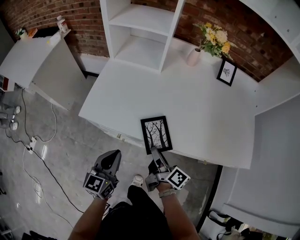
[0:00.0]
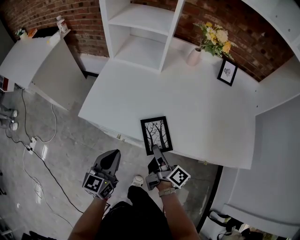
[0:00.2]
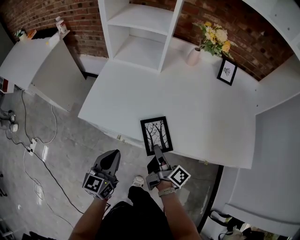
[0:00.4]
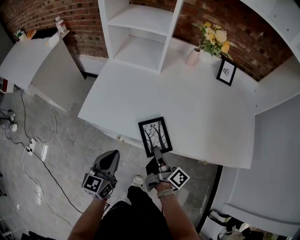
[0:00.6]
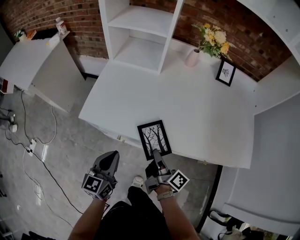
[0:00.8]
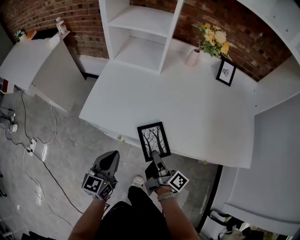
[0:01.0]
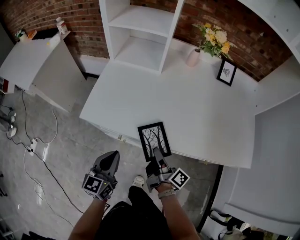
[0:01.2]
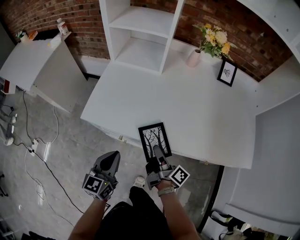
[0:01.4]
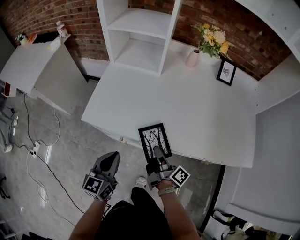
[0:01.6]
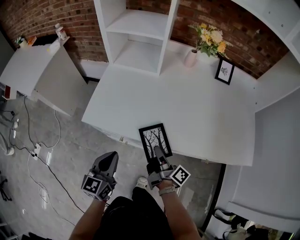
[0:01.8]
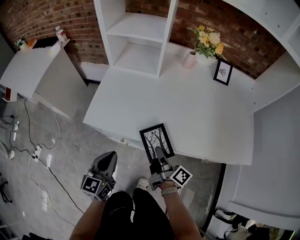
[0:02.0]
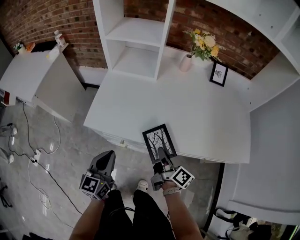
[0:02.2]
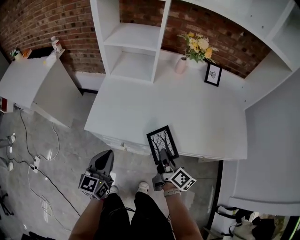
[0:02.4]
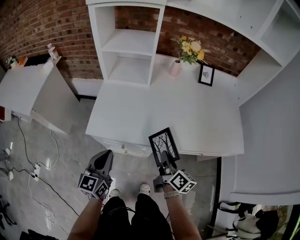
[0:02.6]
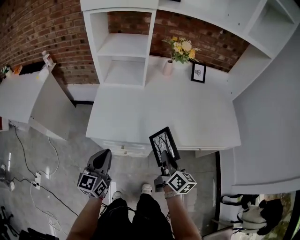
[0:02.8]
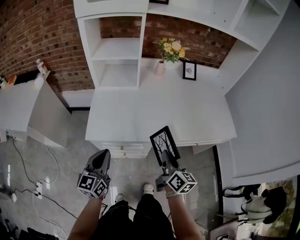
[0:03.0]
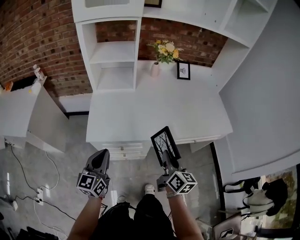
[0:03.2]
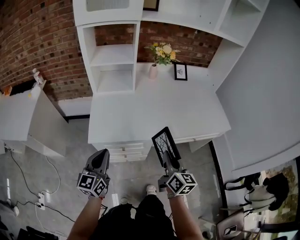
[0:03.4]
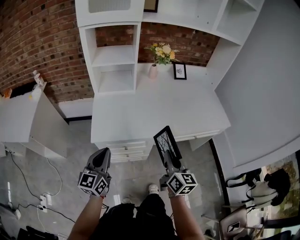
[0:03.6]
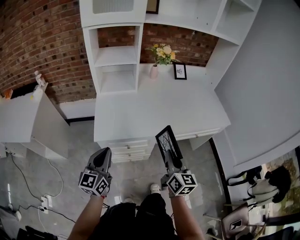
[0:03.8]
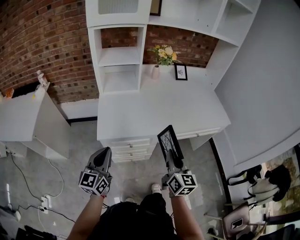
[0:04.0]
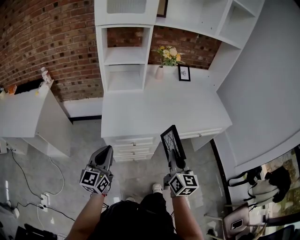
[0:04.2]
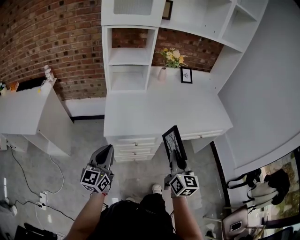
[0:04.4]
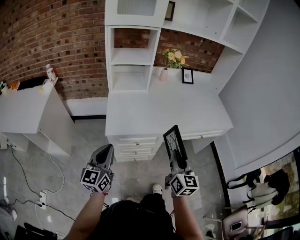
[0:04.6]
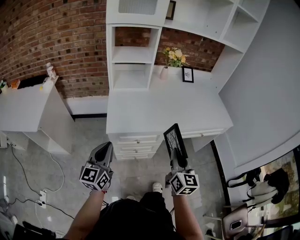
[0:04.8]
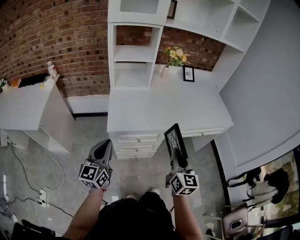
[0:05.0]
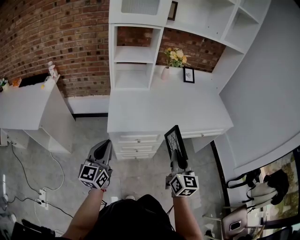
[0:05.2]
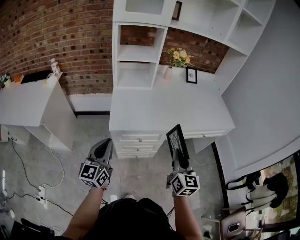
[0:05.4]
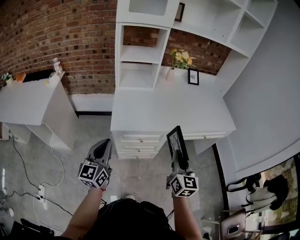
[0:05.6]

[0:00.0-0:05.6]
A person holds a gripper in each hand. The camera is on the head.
0.0 to 1.4 s: The right gripper closes up.
1.4 to 2.8 s: The right gripper moves upward and backward, approximately 10 cm, rolls counterclockwise, seen from behind, by roughly 40 degrees, and closes; the left gripper is displaced upward and to the left by approximately 10 cm.
2.8 to 4.2 s: The right gripper is displaced backward and upward by some 15 cm, and changes its angle by some 30 degrees; the left gripper shifts roughly 10 cm to the left, backward and upward.
4.2 to 5.6 s: The left gripper shifts by roughly 5 cm.

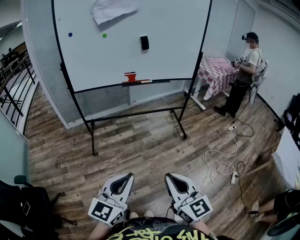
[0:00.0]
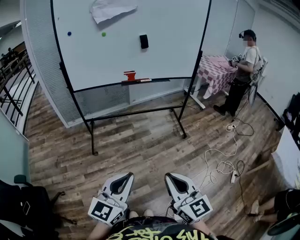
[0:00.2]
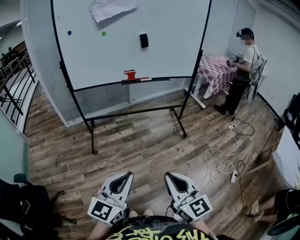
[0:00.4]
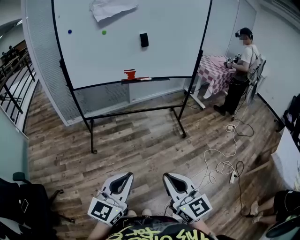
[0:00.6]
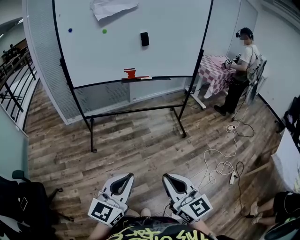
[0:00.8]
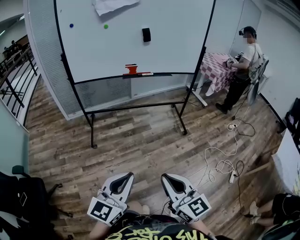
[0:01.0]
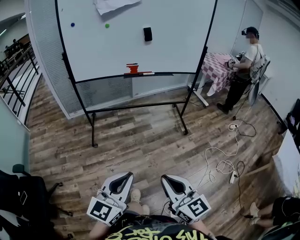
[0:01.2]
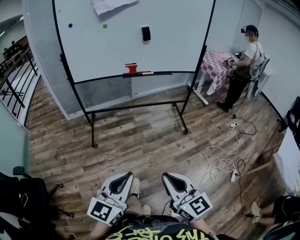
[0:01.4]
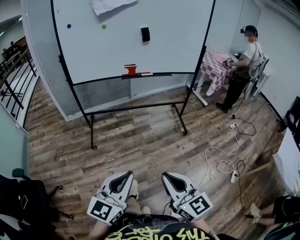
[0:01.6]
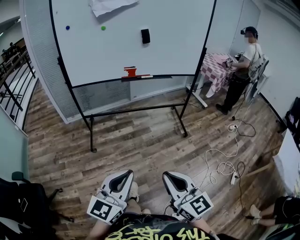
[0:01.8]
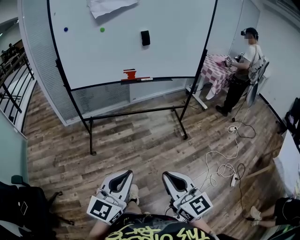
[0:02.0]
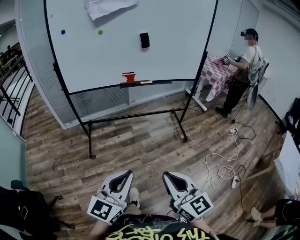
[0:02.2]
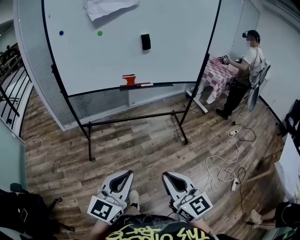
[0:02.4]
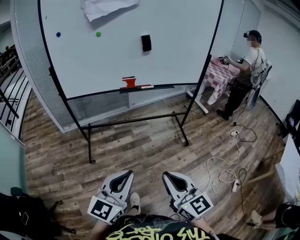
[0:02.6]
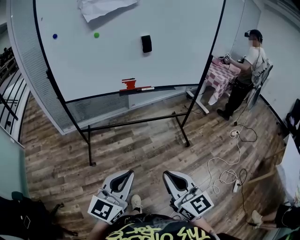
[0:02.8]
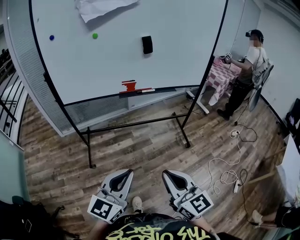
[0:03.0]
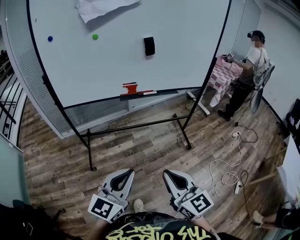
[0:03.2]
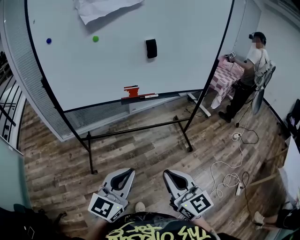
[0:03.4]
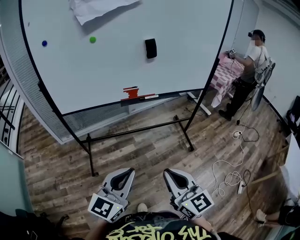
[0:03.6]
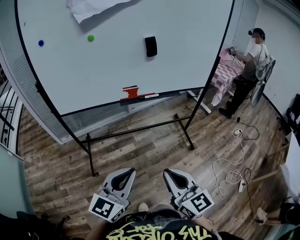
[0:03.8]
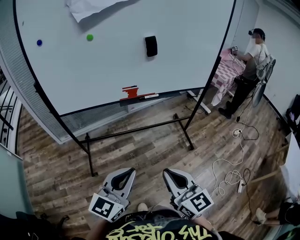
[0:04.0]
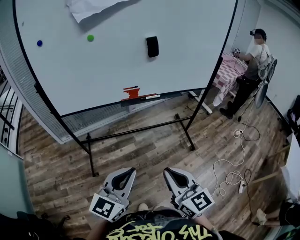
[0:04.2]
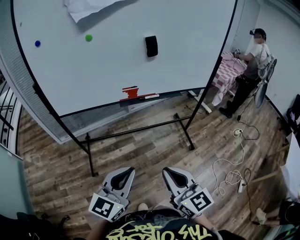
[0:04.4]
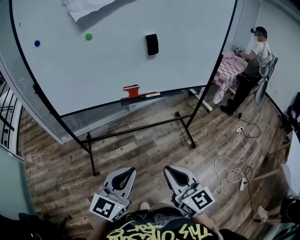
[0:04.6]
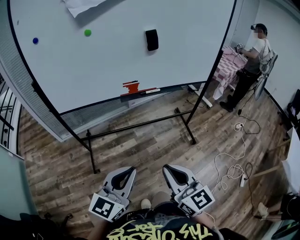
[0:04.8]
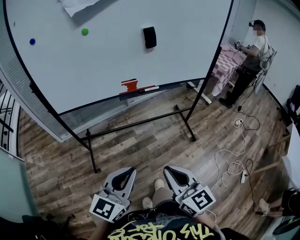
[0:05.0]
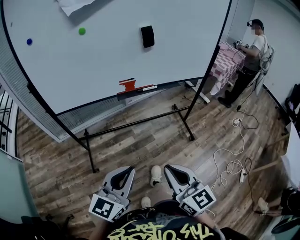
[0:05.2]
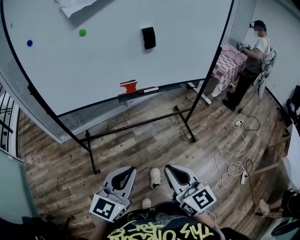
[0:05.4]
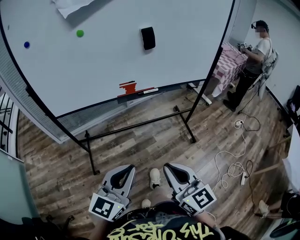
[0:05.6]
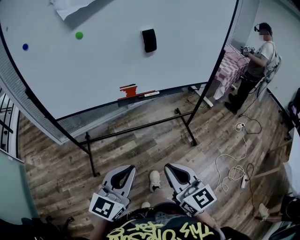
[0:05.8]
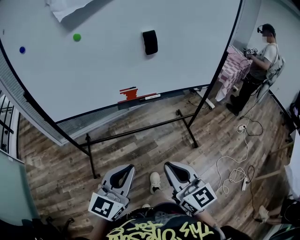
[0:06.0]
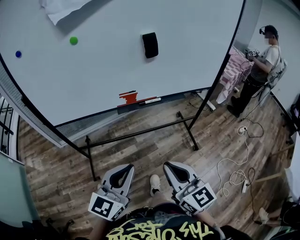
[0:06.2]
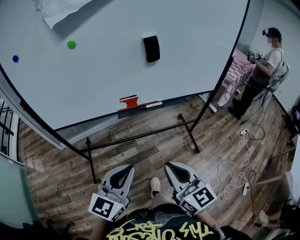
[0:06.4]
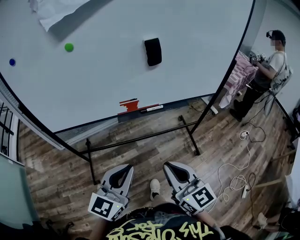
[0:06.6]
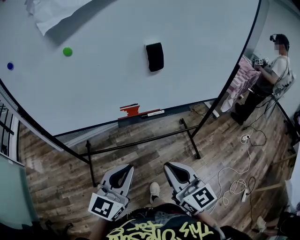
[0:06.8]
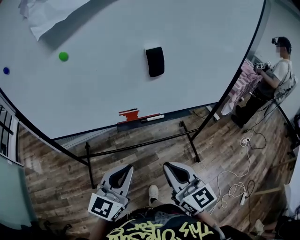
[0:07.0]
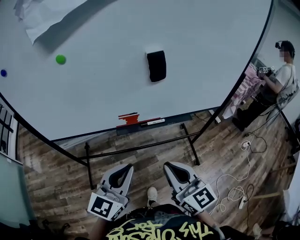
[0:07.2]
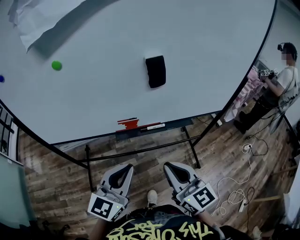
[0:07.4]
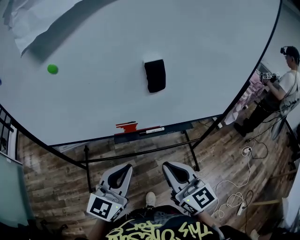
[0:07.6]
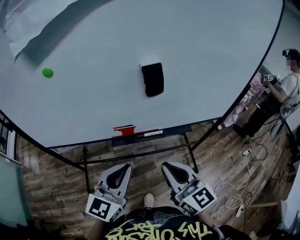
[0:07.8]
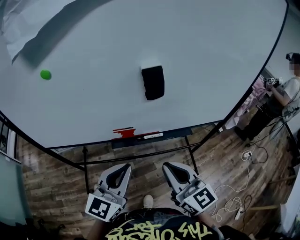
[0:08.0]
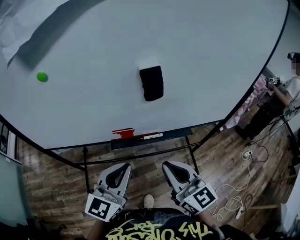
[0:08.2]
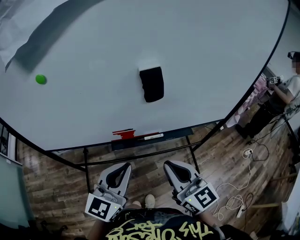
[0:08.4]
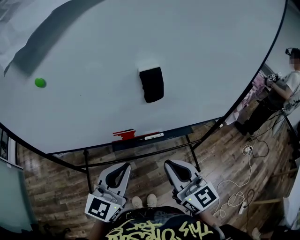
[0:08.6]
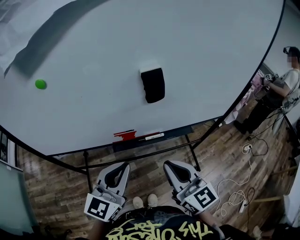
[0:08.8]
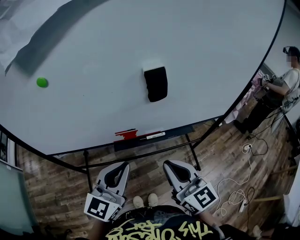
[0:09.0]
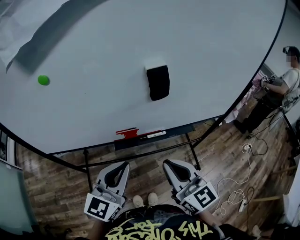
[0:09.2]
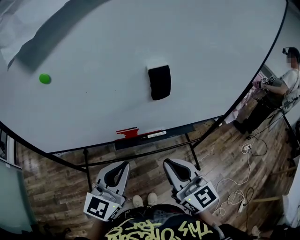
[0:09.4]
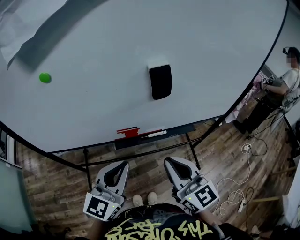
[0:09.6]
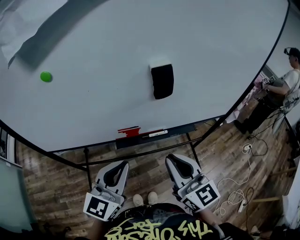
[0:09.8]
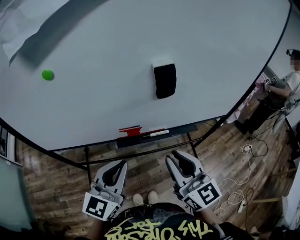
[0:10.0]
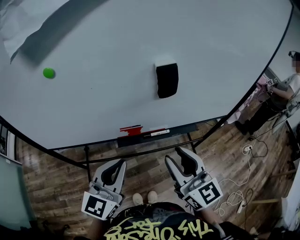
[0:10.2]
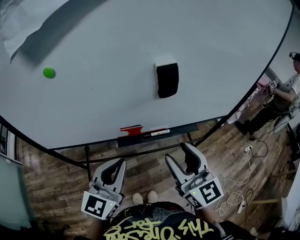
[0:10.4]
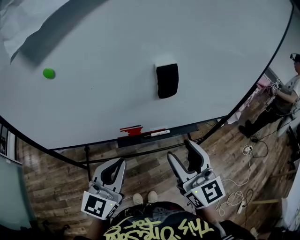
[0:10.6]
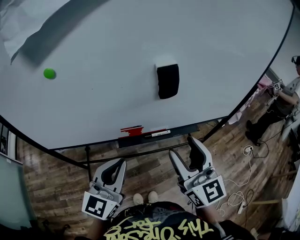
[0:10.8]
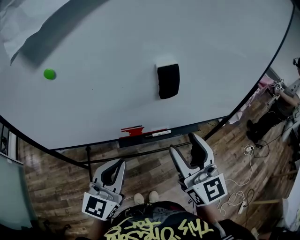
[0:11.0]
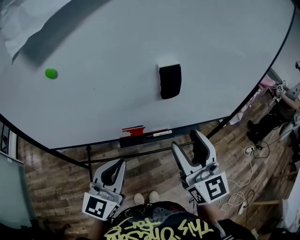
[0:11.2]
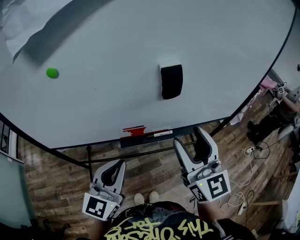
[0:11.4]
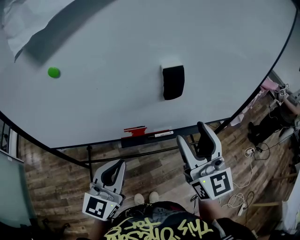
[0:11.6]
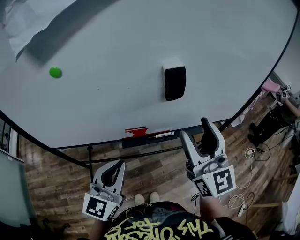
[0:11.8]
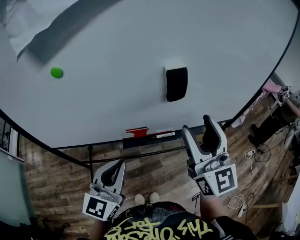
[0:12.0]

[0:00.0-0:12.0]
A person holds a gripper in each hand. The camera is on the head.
0.0 to 1.6 s: There are only small adjustments of the grippers.
1.6 to 3.0 s: The grippers both shift forward by roughly 20 cm.
3.0 to 4.4 s: The two grippers go some 10 cm forward.
4.4 to 6.0 s: The two grippers go approximately 5 cm forward.
6.0 to 7.6 s: The grippers both shift forward by roughly 20 cm.
7.6 to 9.0 s: The grippers stay close to where they were, moving slightly.
9.0 to 10.4 s: The right gripper opens its fingers.
10.4 to 12.0 s: The right gripper moves upward, roughly 10 cm.

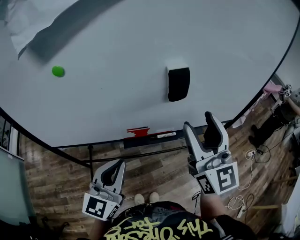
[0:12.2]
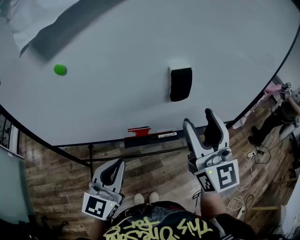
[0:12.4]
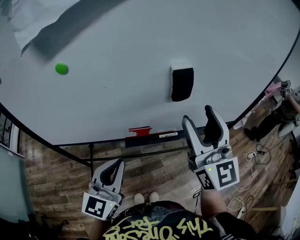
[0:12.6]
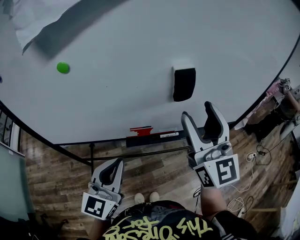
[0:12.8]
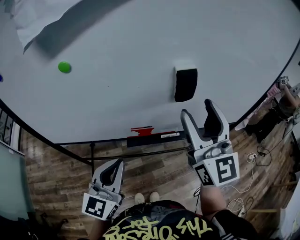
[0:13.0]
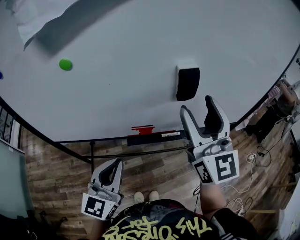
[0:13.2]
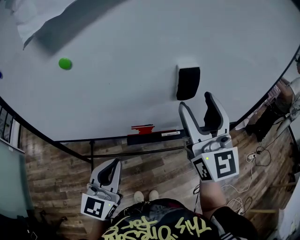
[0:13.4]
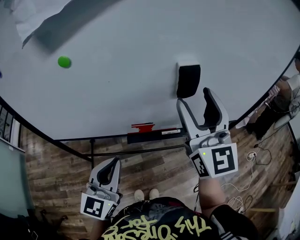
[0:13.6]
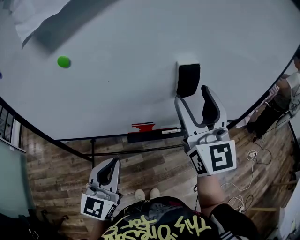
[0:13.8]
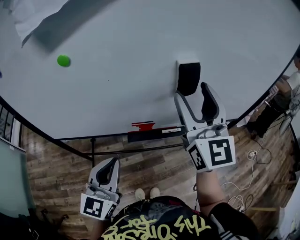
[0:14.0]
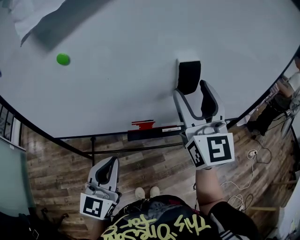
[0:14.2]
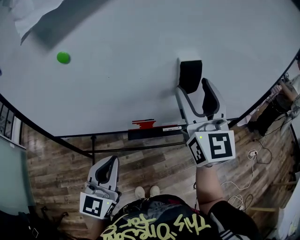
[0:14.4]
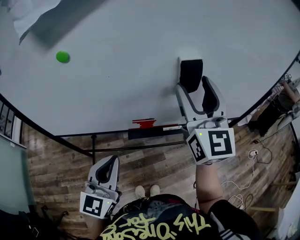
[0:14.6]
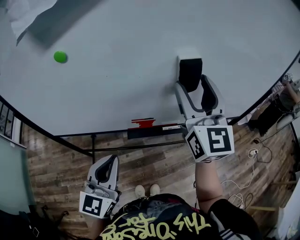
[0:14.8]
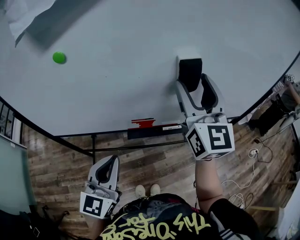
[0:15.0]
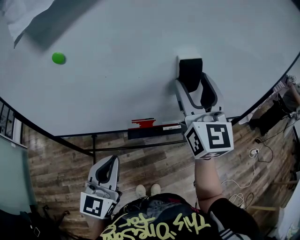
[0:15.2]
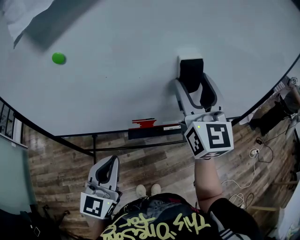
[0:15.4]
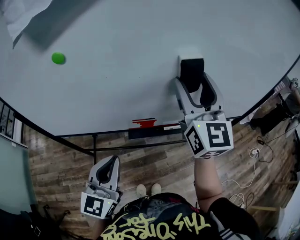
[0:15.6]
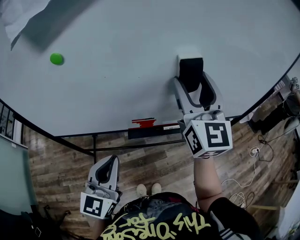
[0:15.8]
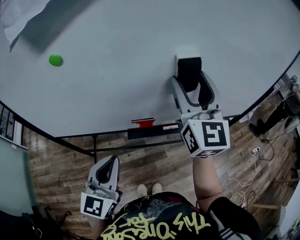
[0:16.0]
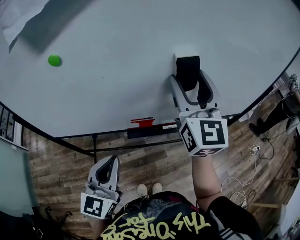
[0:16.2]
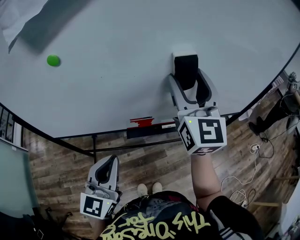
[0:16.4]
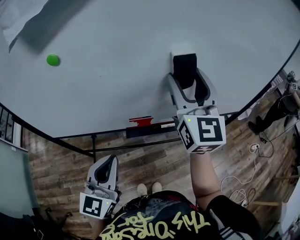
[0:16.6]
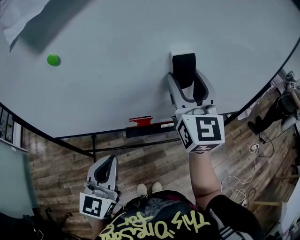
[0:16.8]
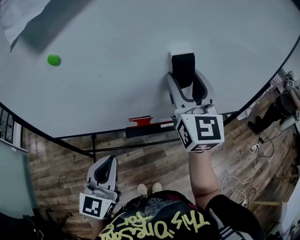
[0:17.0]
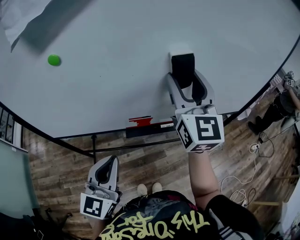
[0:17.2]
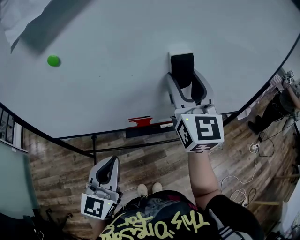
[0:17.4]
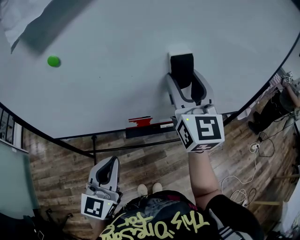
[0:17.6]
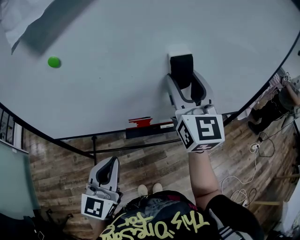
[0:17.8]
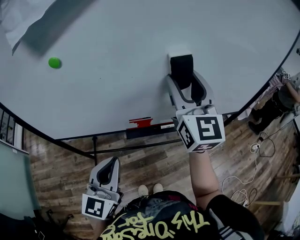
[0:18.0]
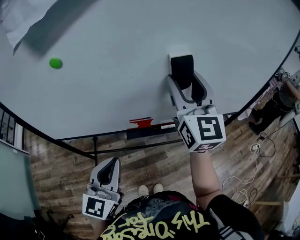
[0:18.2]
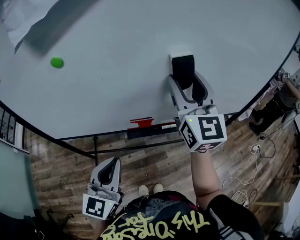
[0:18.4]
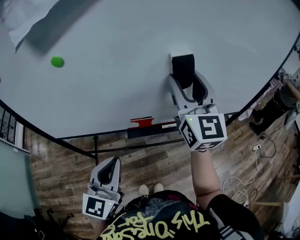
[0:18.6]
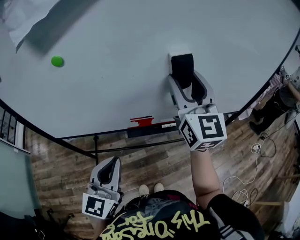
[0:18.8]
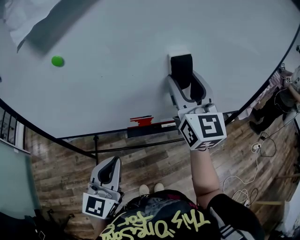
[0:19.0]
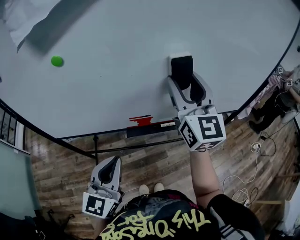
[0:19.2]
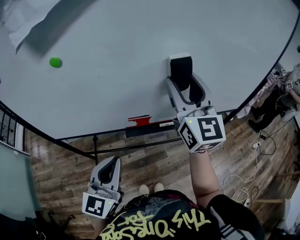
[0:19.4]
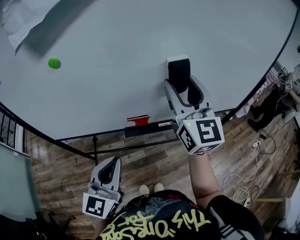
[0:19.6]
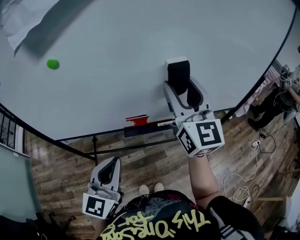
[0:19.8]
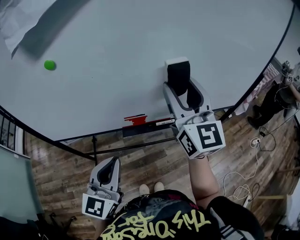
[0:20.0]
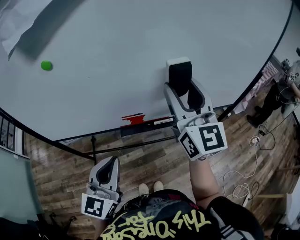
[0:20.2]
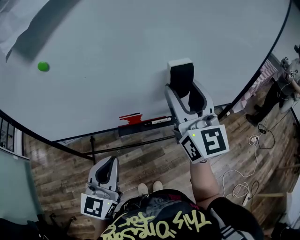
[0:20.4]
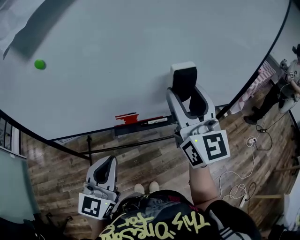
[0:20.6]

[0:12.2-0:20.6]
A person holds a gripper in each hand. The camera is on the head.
12.2 to 13.6 s: The right gripper shifts by some 5 cm.
13.6 to 15.0 s: The right gripper shifts roughly 5 cm forward.
15.0 to 17.8 s: Neither gripper changes place.
17.8 to 19.2 s: Both grippers stay about where they are.
19.2 to 20.6 s: The right gripper is displaced backward by approximately 5 cm.
